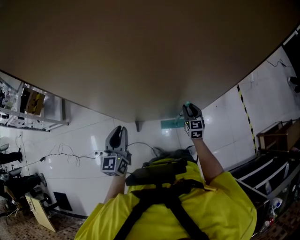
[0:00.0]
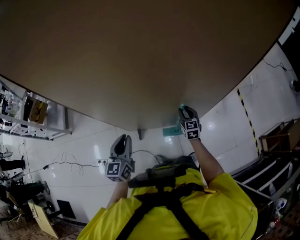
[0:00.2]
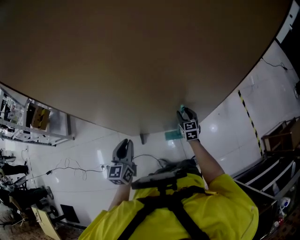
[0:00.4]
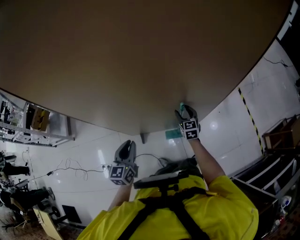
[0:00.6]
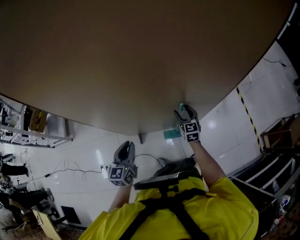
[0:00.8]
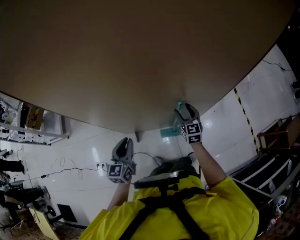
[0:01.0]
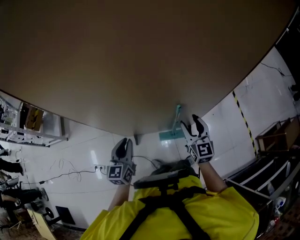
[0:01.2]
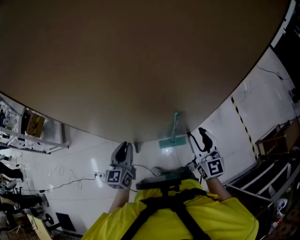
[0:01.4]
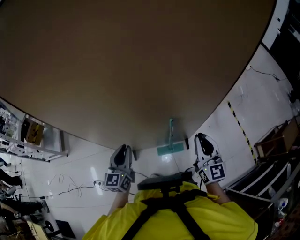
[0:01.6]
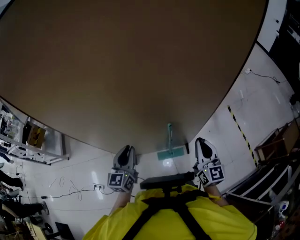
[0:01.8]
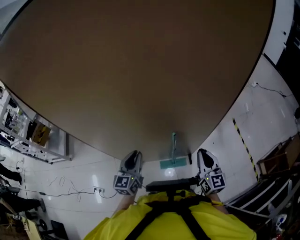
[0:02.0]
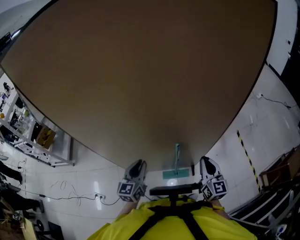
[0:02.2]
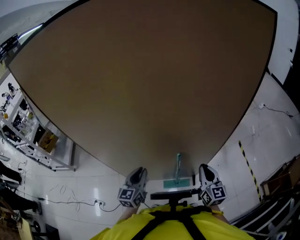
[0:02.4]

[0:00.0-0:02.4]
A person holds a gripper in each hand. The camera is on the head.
0:00.0 to 0:01.2: The right gripper goes roughly 15 cm upward, and opens.
0:01.2 to 0:02.4: The grippers both shift to the right and upward by approximately 10 cm. The right gripper closes up.

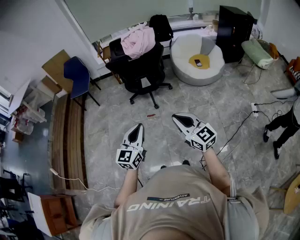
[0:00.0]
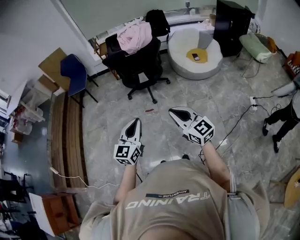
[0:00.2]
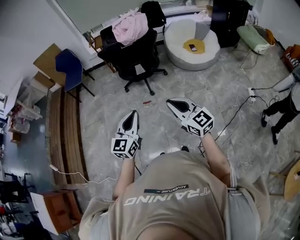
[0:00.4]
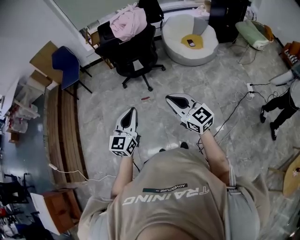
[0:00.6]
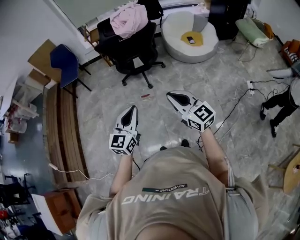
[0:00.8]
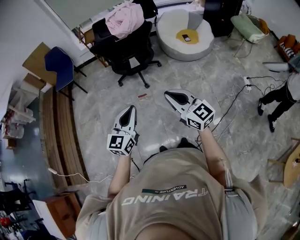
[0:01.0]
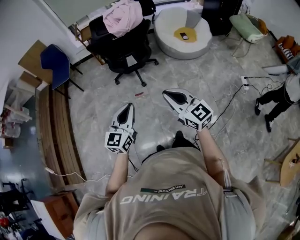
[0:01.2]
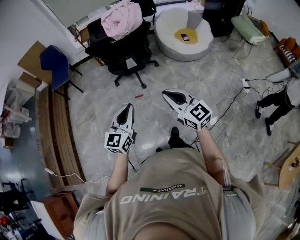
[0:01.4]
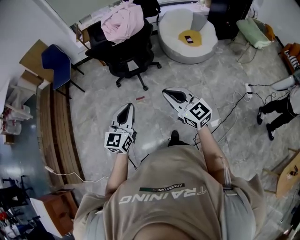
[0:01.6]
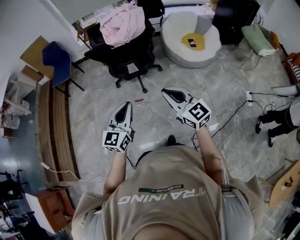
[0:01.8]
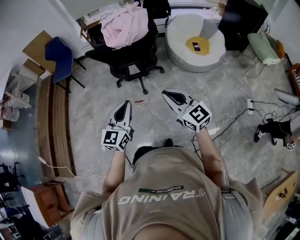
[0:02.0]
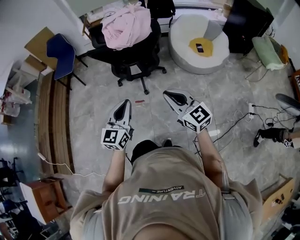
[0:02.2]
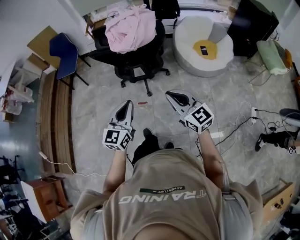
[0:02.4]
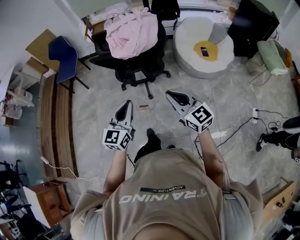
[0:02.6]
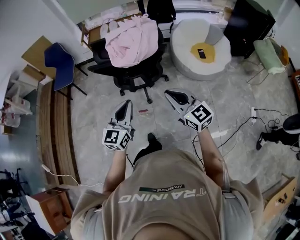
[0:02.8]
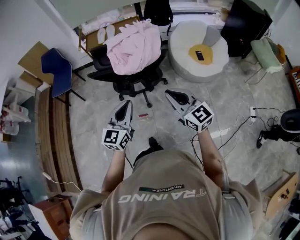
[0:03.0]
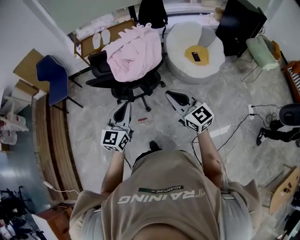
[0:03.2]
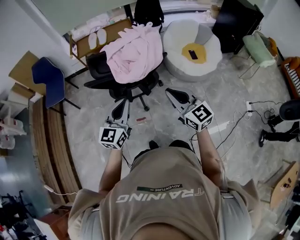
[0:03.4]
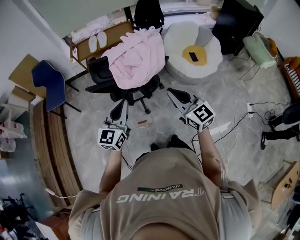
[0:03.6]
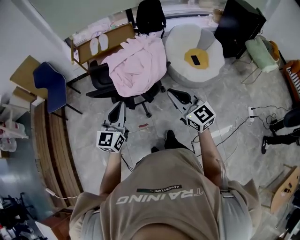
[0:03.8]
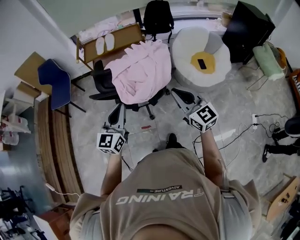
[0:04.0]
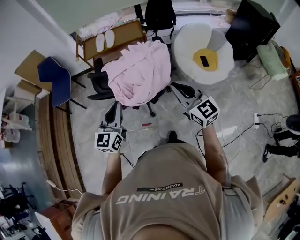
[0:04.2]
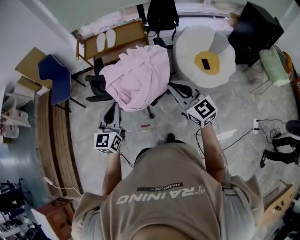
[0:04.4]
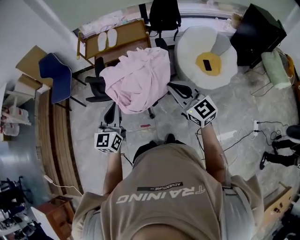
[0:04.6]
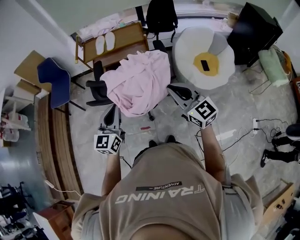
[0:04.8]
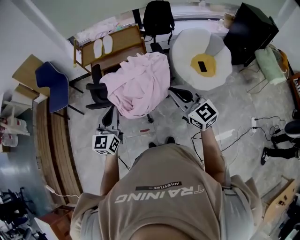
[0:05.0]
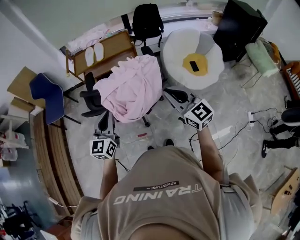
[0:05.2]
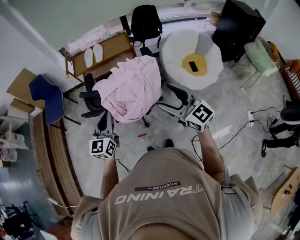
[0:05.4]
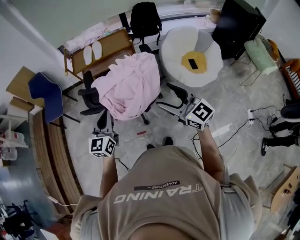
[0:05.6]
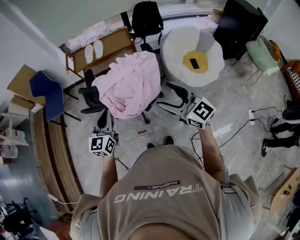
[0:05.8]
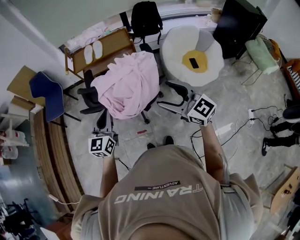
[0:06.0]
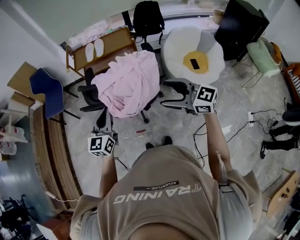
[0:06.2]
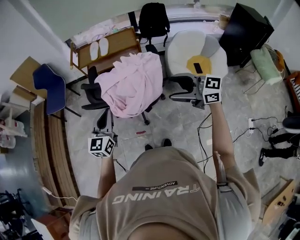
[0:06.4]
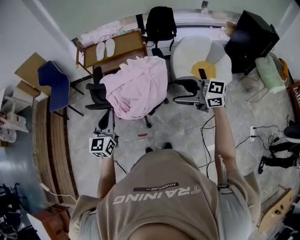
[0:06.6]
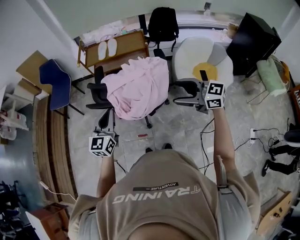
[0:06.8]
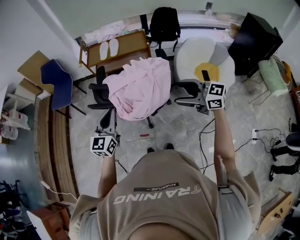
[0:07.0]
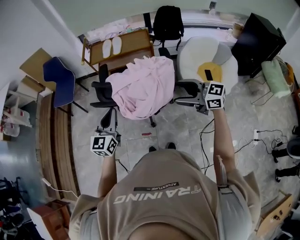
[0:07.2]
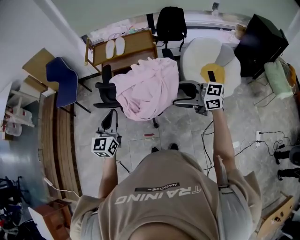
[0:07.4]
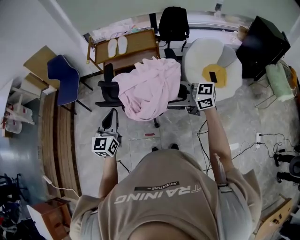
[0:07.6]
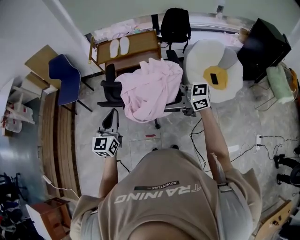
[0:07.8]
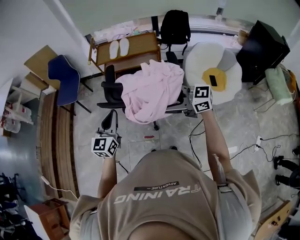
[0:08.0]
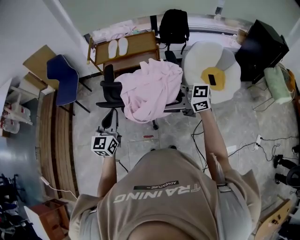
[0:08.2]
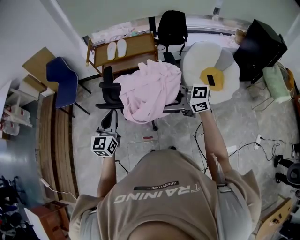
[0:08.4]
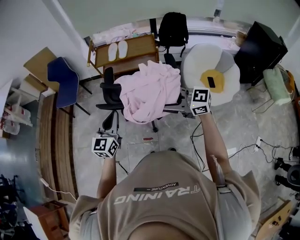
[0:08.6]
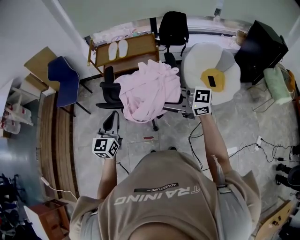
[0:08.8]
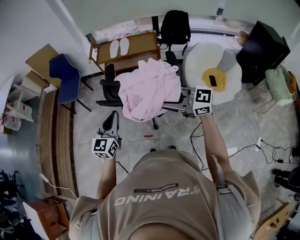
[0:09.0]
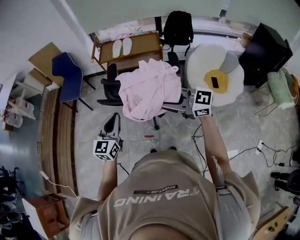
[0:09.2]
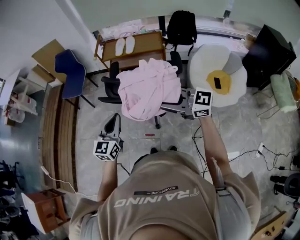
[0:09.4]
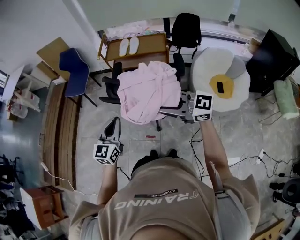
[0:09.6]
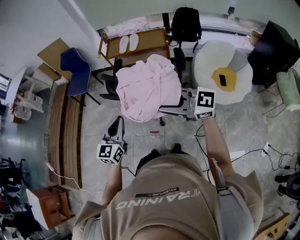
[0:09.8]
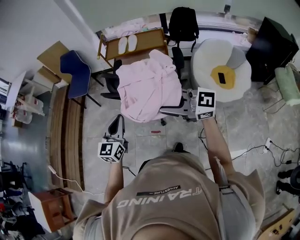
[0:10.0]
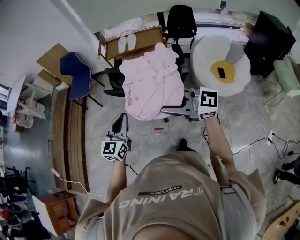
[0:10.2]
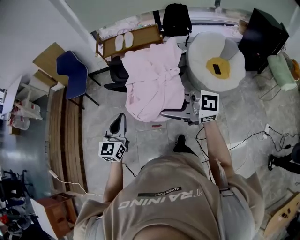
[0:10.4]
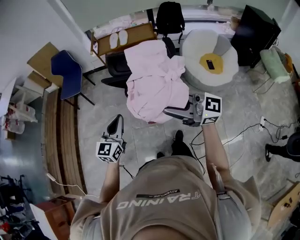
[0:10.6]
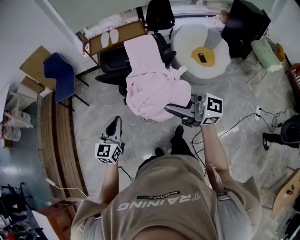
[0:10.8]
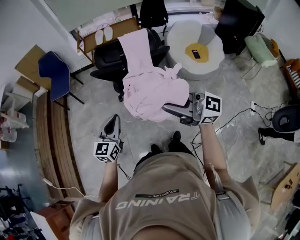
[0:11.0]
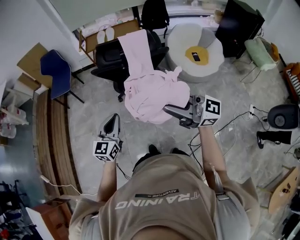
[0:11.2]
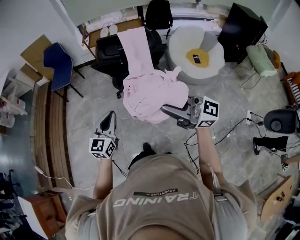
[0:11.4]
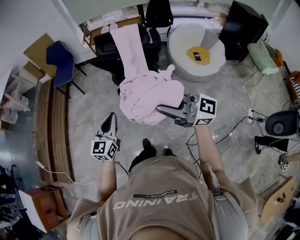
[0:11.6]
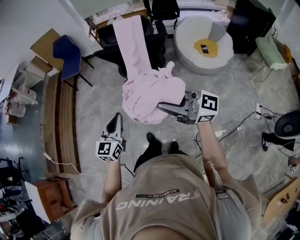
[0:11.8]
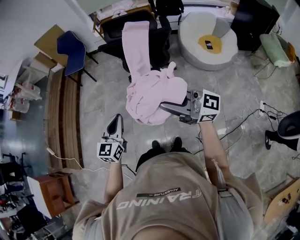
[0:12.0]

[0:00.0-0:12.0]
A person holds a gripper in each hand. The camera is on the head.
0:00.0 to 0:01.6: The grippers both shift forward by about 15 cm.
0:01.6 to 0:03.0: The grippers both shift forward by some 25 cm.
0:03.0 to 0:04.4: The two grippers go about 20 cm forward.
0:04.4 to 0:06.0: The right gripper opens its fingers.
0:06.0 to 0:07.6: The right gripper shifts roughly 5 cm forward, and turns by approximately 40 degrees.
0:07.6 to 0:09.0: The right gripper ends up some 5 cm from where it was, and closes its fingers.
0:09.0 to 0:10.4: The right gripper travels to the left and backward by some 15 cm. The left gripper moves backward and to the left, approximately 15 cm.
0:10.4 to 0:12.0: The grippers both shift backward by approximately 25 cm.

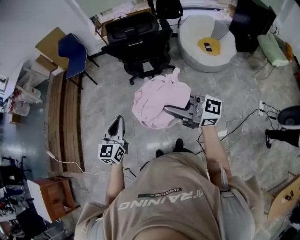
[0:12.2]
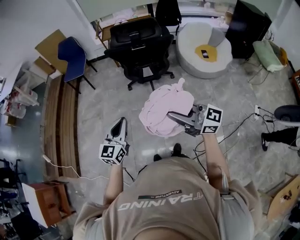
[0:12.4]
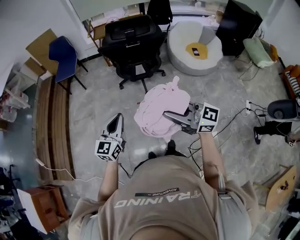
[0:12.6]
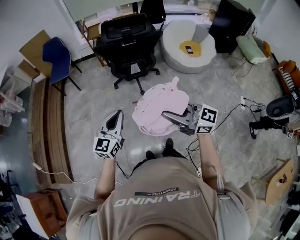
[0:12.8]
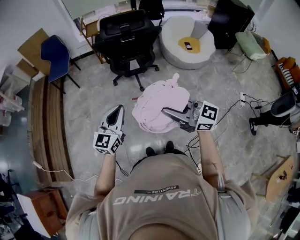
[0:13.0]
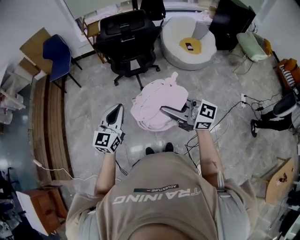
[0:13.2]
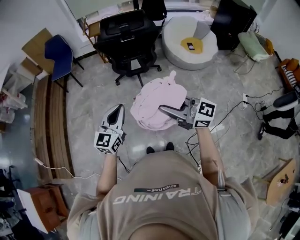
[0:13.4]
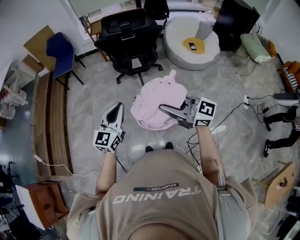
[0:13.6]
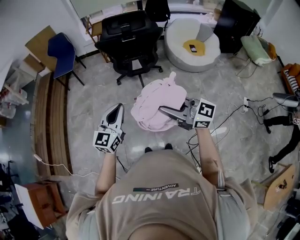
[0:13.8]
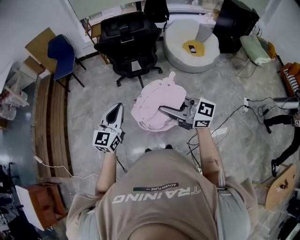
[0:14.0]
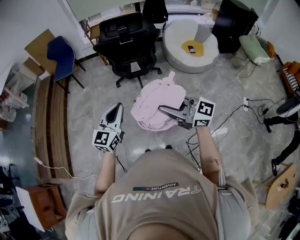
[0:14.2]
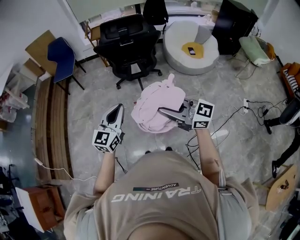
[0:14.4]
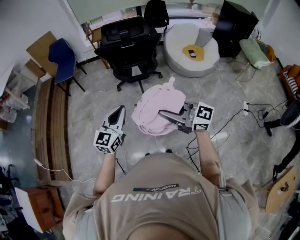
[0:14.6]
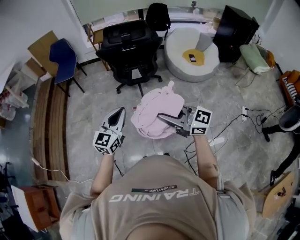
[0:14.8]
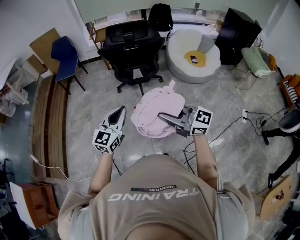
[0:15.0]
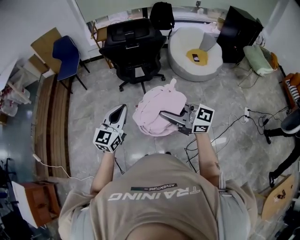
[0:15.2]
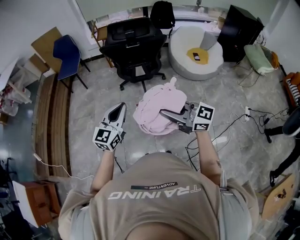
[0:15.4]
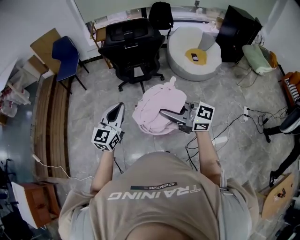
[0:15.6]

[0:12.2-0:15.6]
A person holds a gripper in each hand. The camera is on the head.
0:12.2 to 0:13.8: The left gripper changes place by approximately 5 cm. Meanwhile the right gripper travels backward and to the left by some 10 cm.
0:13.8 to 0:15.6: The grippers make only small movements.

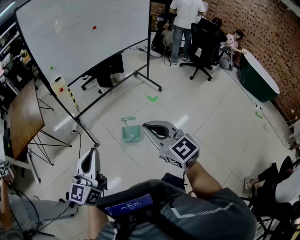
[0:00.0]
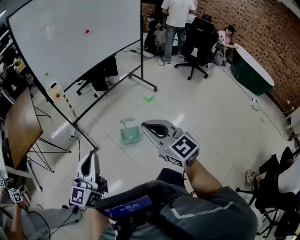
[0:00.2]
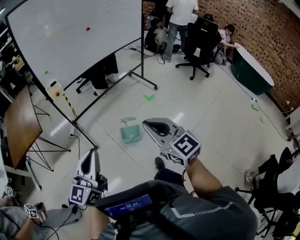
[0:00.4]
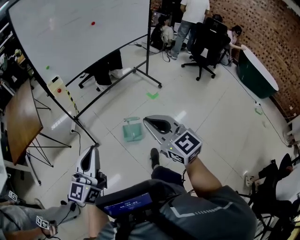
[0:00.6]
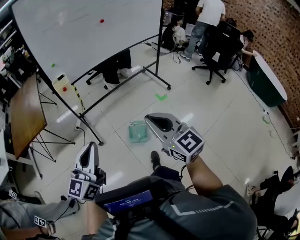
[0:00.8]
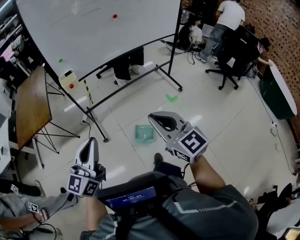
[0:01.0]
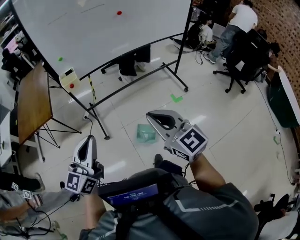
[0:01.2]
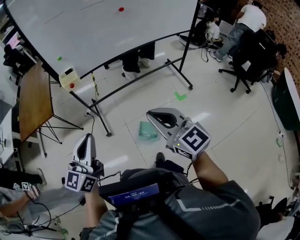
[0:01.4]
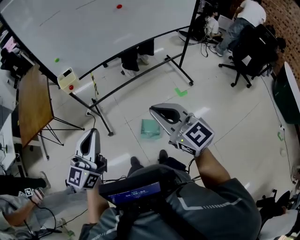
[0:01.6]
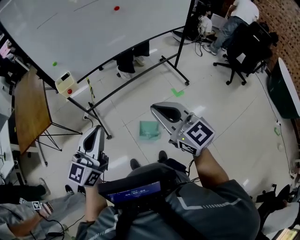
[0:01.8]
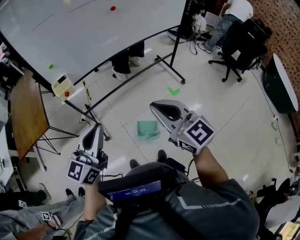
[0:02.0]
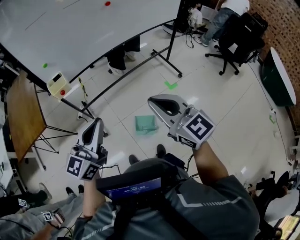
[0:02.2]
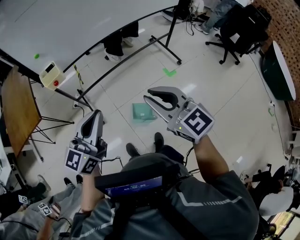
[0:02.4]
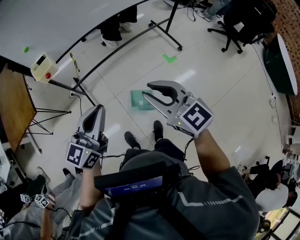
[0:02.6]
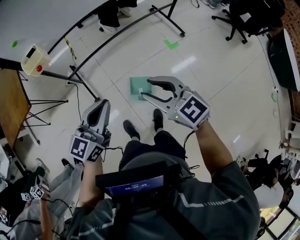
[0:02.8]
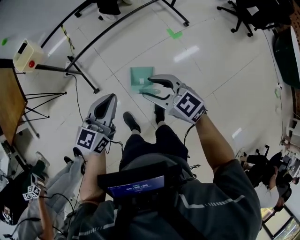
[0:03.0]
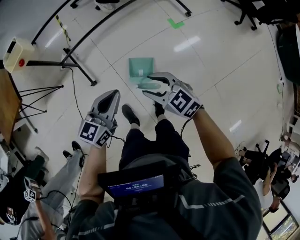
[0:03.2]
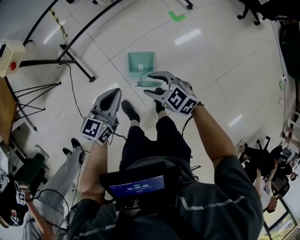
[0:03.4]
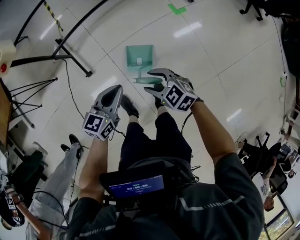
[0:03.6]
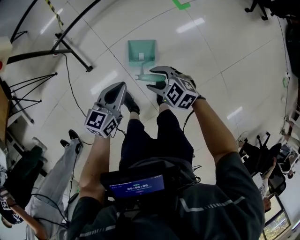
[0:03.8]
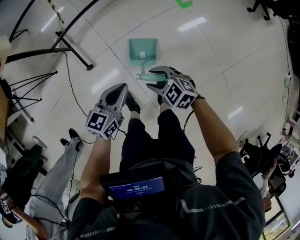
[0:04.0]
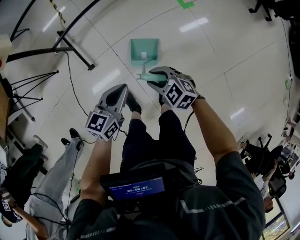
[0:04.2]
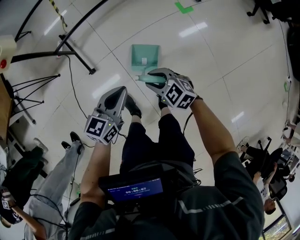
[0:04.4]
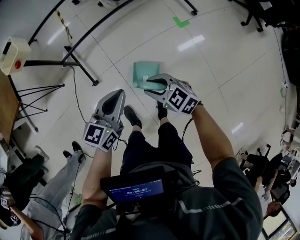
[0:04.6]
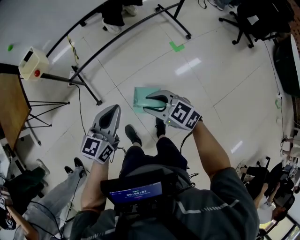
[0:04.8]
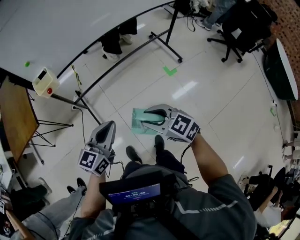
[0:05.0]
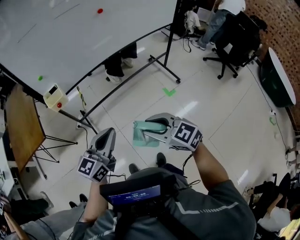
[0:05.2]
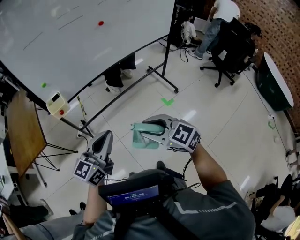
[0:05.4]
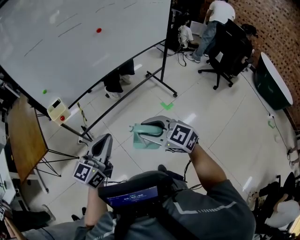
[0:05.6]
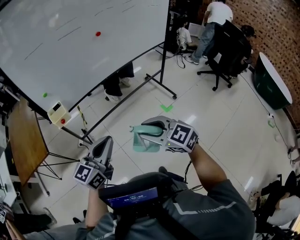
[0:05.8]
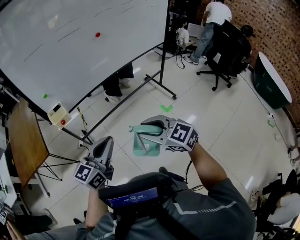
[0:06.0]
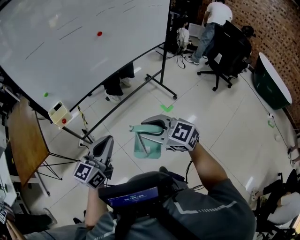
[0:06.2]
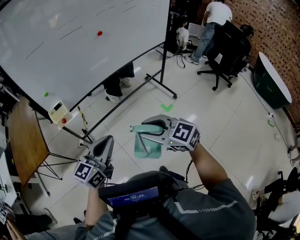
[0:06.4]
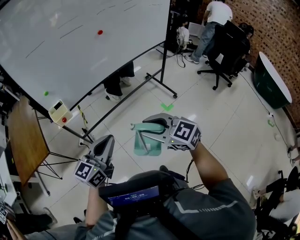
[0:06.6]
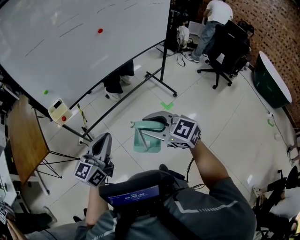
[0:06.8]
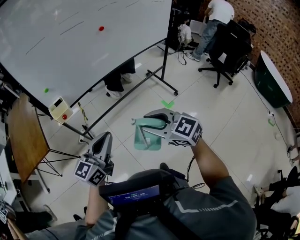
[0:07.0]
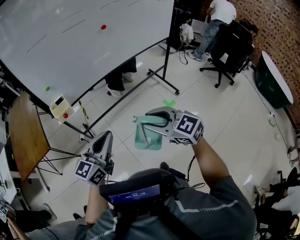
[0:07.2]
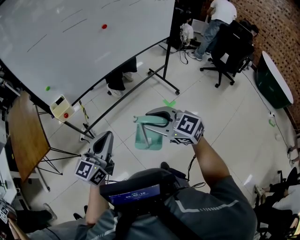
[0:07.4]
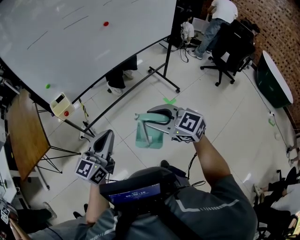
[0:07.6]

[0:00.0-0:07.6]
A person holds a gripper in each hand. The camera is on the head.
0:00.0 to 0:01.6: The pair of grippers is taken forward, about 40 cm.
0:01.6 to 0:03.0: Both grippers move downward, some 30 cm. The left gripper changes its angle by some 30 degrees, while the right gripper rotates about 20 degrees, and opens its fingers.
0:03.0 to 0:04.6: The right gripper is displaced downward by some 20 cm. The left gripper goes approximately 15 cm downward.
0:04.6 to 0:06.0: The two grippers go some 40 cm upward. The left gripper swivels roughly 20 degrees. Meanwhile the right gripper rotates some 20 degrees.
0:06.0 to 0:07.6: The left gripper ends up some 5 cm from where it was.
